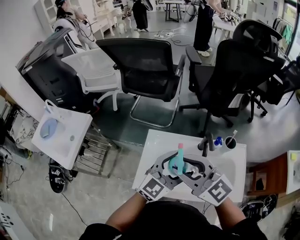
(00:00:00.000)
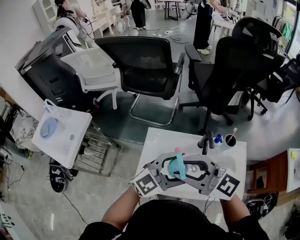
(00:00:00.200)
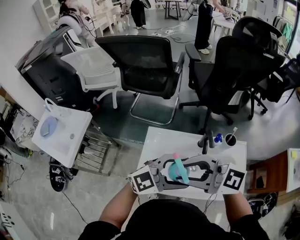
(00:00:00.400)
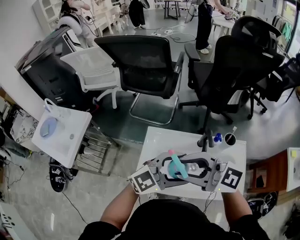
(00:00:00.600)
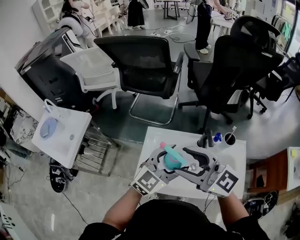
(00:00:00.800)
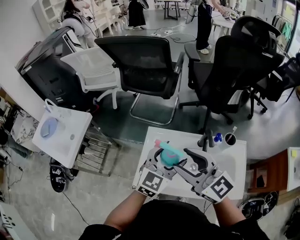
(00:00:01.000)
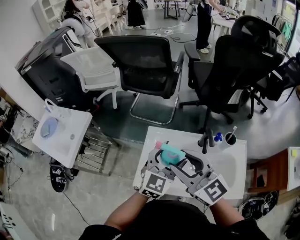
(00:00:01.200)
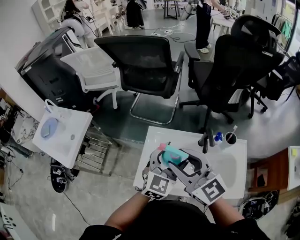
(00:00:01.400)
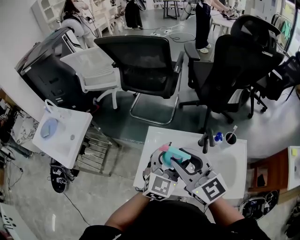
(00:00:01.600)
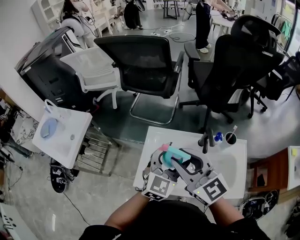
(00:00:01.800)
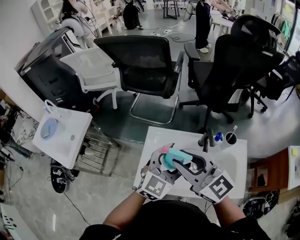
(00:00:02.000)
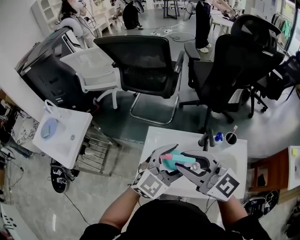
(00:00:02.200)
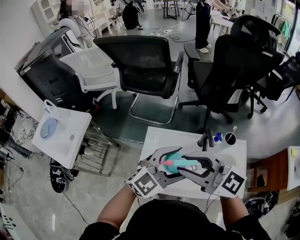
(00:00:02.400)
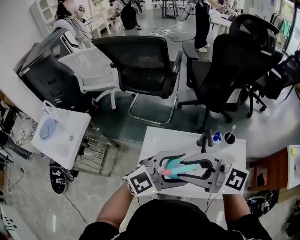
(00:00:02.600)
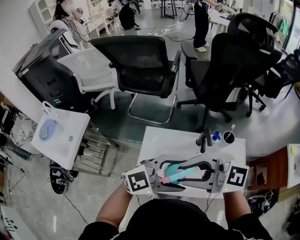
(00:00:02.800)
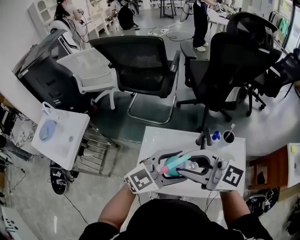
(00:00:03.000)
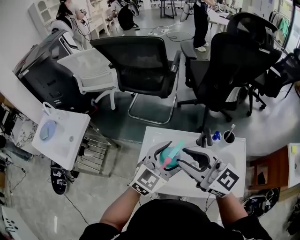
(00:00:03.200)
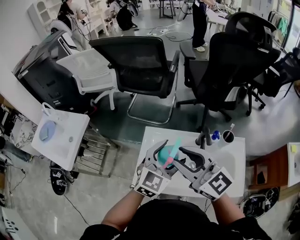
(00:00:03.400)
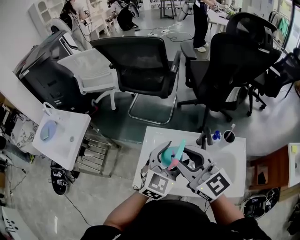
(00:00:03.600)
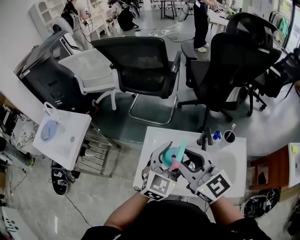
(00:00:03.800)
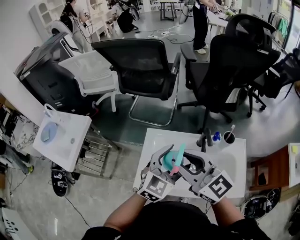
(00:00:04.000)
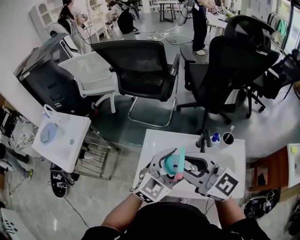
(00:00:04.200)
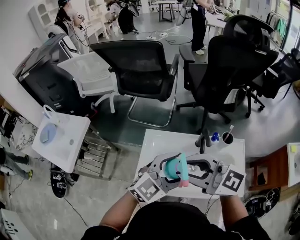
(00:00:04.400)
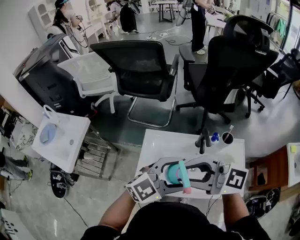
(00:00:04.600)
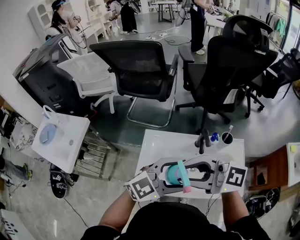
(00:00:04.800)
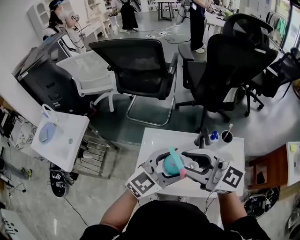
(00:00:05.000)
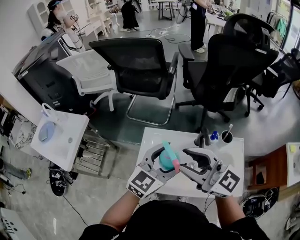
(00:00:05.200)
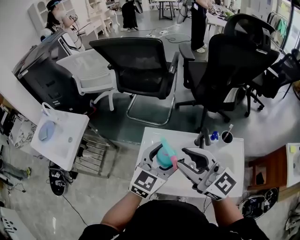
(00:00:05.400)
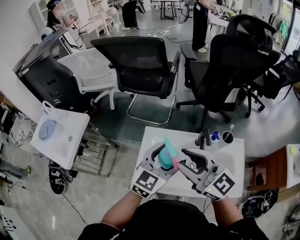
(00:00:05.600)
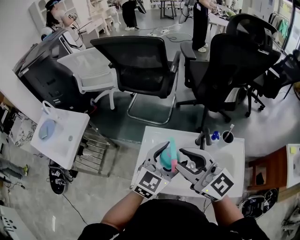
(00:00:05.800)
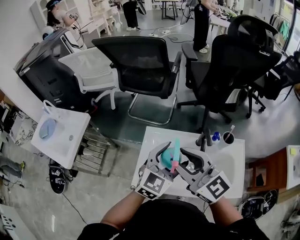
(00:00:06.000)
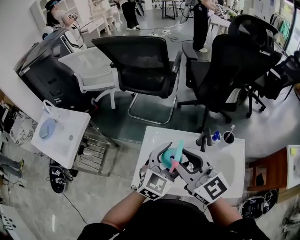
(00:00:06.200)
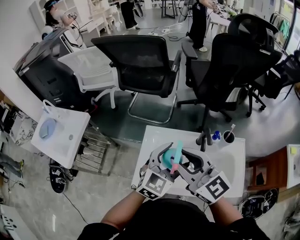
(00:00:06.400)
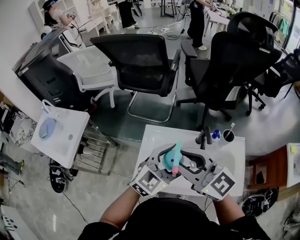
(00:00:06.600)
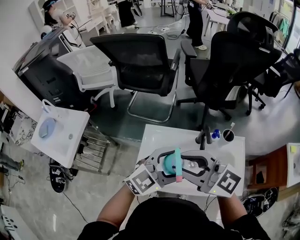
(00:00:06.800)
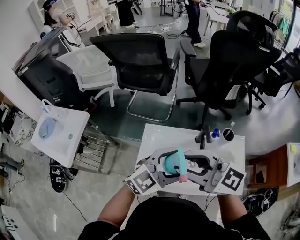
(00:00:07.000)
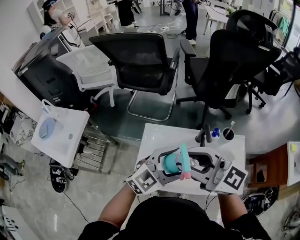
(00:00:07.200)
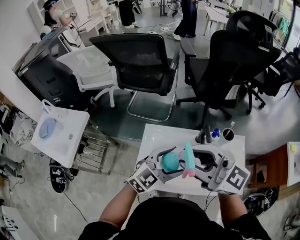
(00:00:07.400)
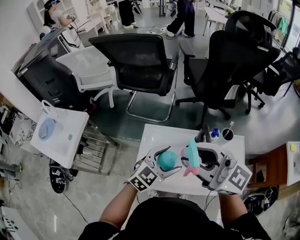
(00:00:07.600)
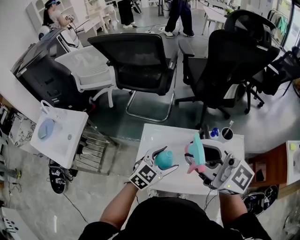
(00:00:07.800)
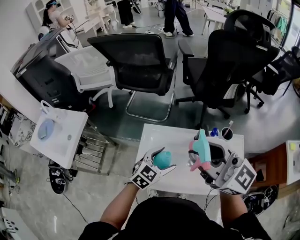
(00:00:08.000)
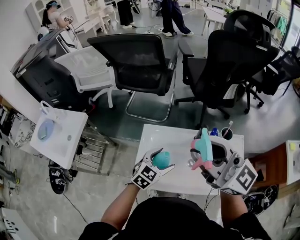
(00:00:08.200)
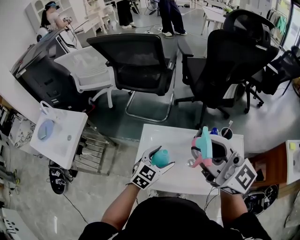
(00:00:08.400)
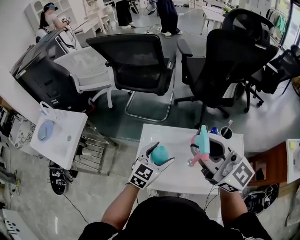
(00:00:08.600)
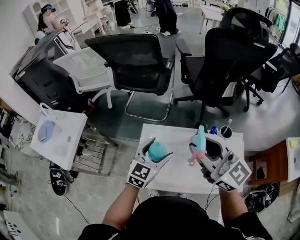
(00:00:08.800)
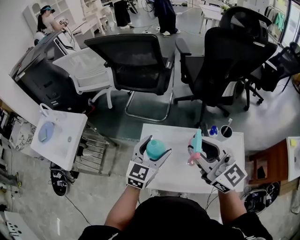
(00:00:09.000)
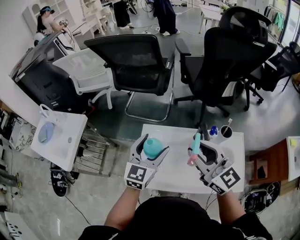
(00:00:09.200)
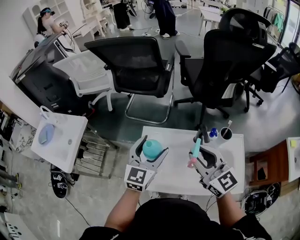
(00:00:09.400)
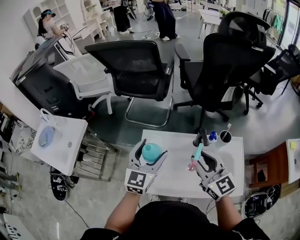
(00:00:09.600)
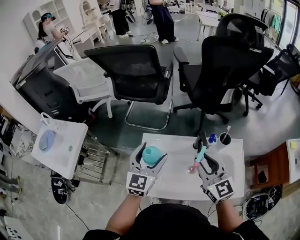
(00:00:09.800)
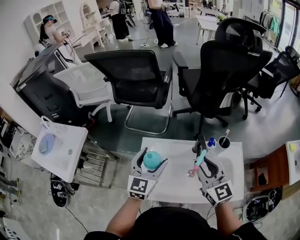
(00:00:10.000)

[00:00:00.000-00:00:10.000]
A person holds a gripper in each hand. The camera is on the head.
00:00:00.000 to 00:00:01.400: The left gripper changes its angle by roughly 20 degrees.
00:00:01.400 to 00:00:02.800: The right gripper moves roughly 5 cm, and changes its angle by some 40 degrees; the left gripper moves approximately 10 cm, and swivels about 50 degrees.
00:00:02.800 to 00:00:04.200: The right gripper swivels some 30 degrees, while the left gripper changes its angle by approximately 40 degrees.
00:00:05.800 to 00:00:07.200: The left gripper changes its angle by approximately 20 degrees.
00:00:07.200 to 00:00:08.600: The right gripper moves roughly 5 cm. The left gripper travels downward by roughly 10 cm, and turns by roughly 20 degrees.
00:00:08.600 to 00:00:10.000: The left gripper travels upward by approximately 5 cm; the right gripper goes about 15 cm downward, and changes its angle by about 30 degrees.

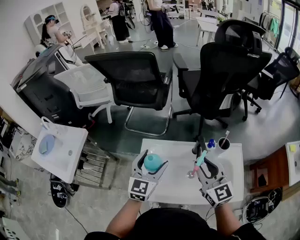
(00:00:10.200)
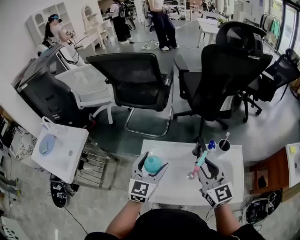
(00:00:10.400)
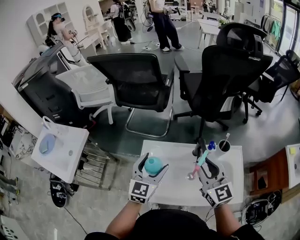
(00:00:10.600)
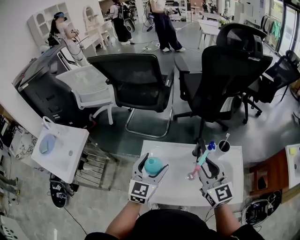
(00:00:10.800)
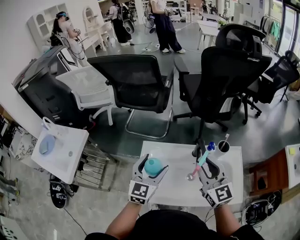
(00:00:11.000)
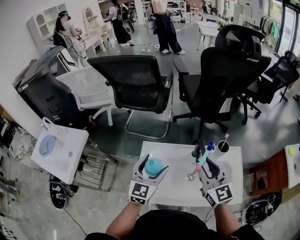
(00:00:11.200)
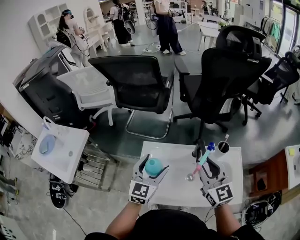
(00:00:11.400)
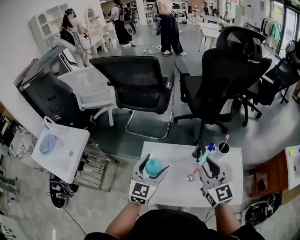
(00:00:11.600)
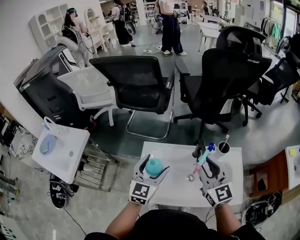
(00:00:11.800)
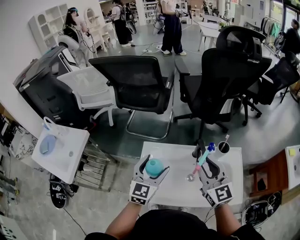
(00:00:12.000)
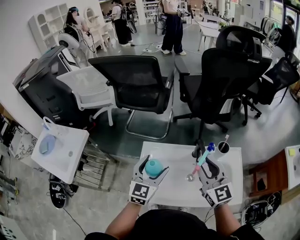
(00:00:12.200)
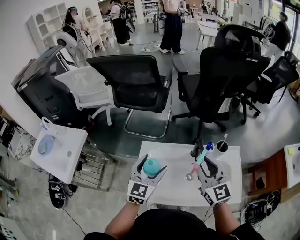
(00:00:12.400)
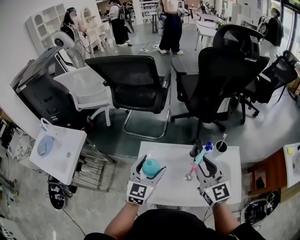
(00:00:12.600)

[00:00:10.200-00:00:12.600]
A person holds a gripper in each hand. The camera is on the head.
00:00:10.200 to 00:00:11.400: The grippers make only small movements.
00:00:11.400 to 00:00:12.600: Neither gripper changes place.

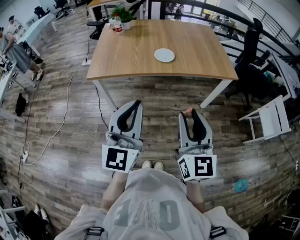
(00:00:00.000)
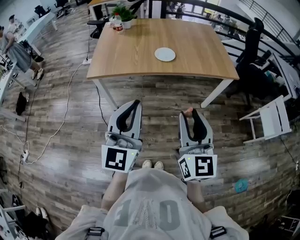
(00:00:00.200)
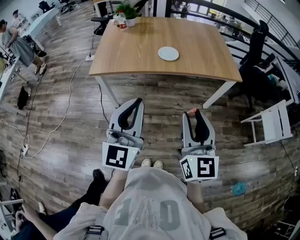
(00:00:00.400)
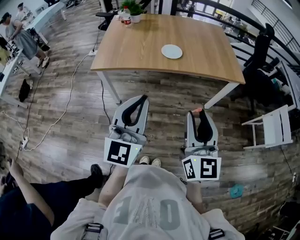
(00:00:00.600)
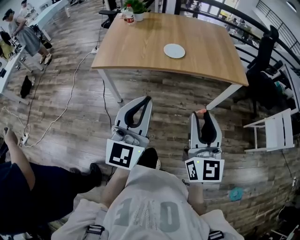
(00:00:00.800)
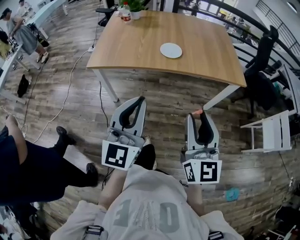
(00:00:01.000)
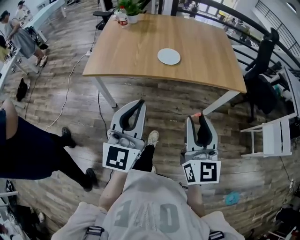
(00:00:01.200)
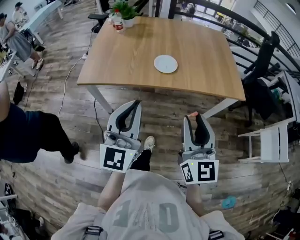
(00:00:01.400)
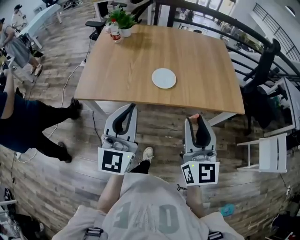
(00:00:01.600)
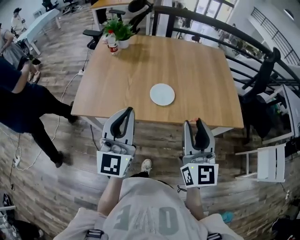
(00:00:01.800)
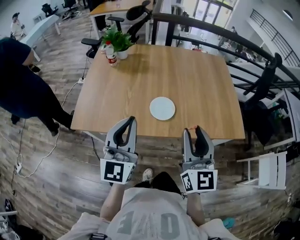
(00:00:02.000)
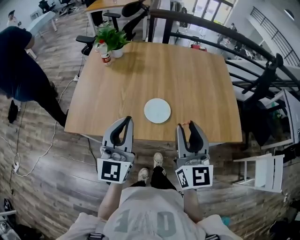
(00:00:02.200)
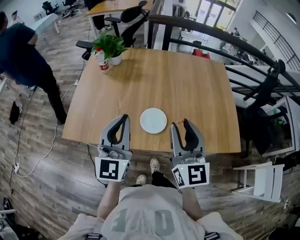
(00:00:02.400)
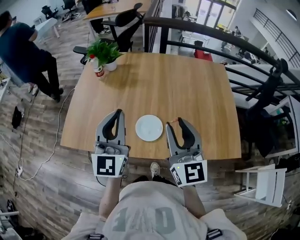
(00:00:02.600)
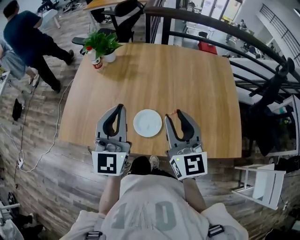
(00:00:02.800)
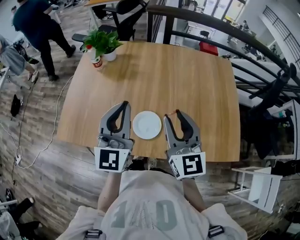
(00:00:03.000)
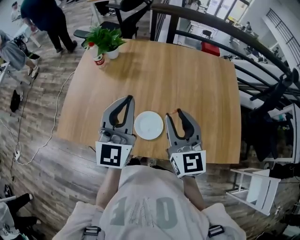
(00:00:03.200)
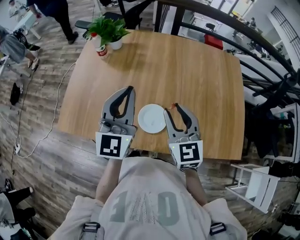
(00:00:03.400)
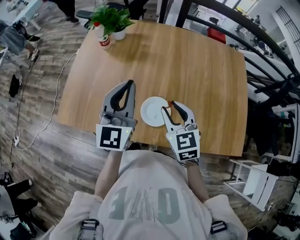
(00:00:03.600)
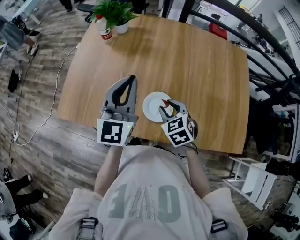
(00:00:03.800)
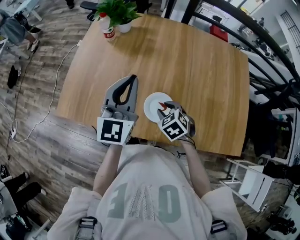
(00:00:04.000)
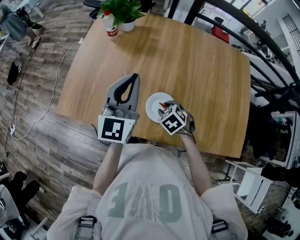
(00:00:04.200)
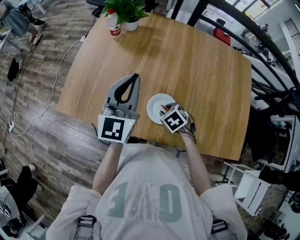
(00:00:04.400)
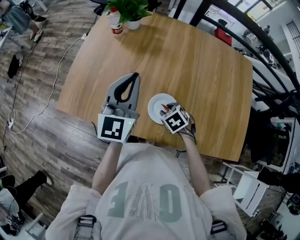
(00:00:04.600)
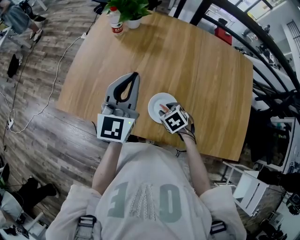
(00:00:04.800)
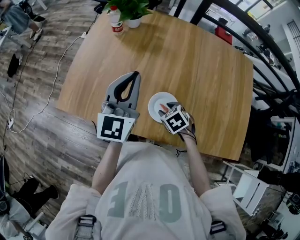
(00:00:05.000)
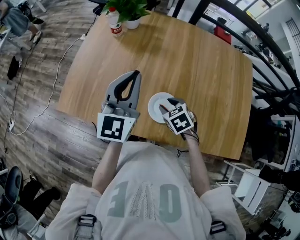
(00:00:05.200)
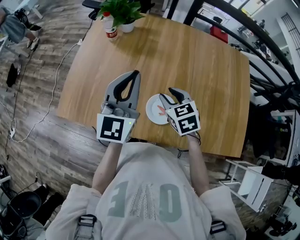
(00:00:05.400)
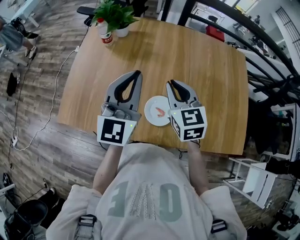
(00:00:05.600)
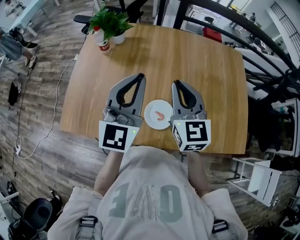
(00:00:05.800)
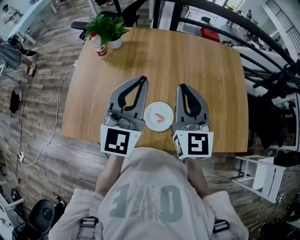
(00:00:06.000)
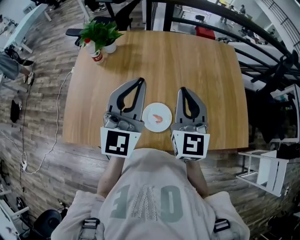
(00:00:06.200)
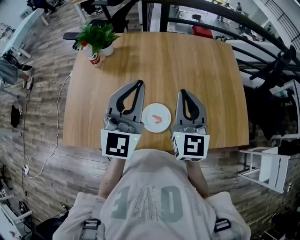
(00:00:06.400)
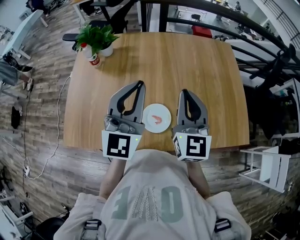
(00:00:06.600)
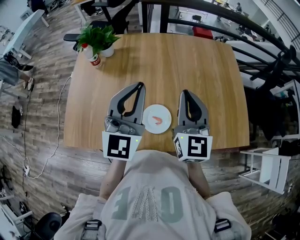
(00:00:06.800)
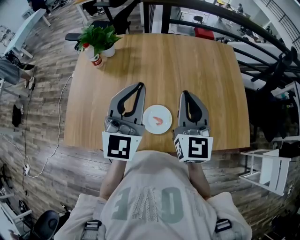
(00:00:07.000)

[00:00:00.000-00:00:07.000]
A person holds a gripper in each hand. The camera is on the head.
00:00:00.000 to 00:00:01.400: Both grippers travel together forward, about 15 cm.
00:00:01.400 to 00:00:02.800: Both grippers travel together forward, approximately 35 cm.
00:00:02.800 to 00:00:04.200: The right gripper heads downward, covering approximately 30 cm, and tips its fingers downward by about 70 degrees. Meanwhile the left gripper moves forward and downward, roughly 10 cm.
00:00:04.200 to 00:00:05.600: The right gripper moves upward, roughly 20 cm, angles its fingers upward, by about 40 degrees, and closes up.
00:00:05.600 to 00:00:07.000: The left gripper heads to the right, covering some 5 cm. Meanwhile the right gripper shifts roughly 10 cm to the right and upward, and turns by approximately 30 degrees.

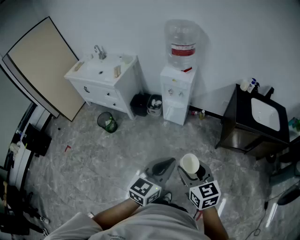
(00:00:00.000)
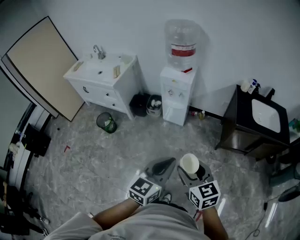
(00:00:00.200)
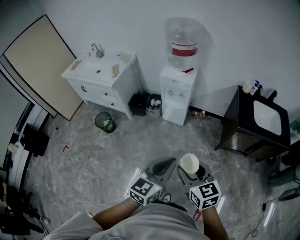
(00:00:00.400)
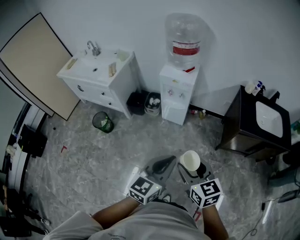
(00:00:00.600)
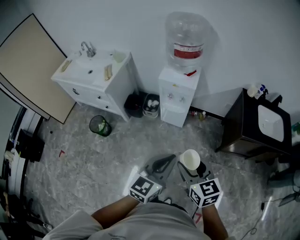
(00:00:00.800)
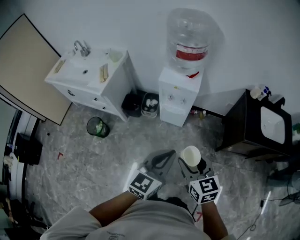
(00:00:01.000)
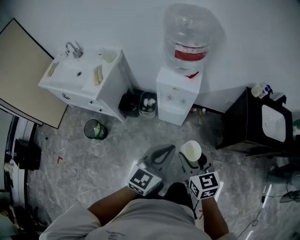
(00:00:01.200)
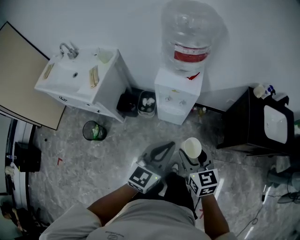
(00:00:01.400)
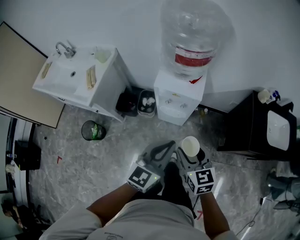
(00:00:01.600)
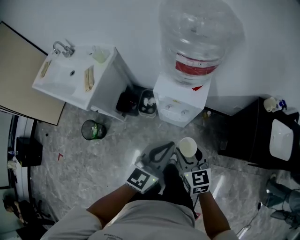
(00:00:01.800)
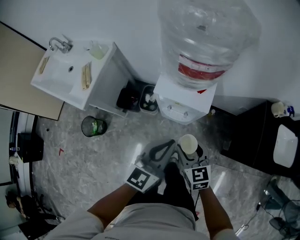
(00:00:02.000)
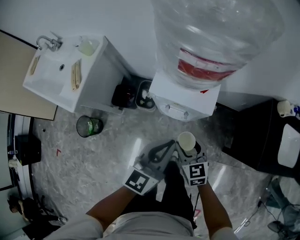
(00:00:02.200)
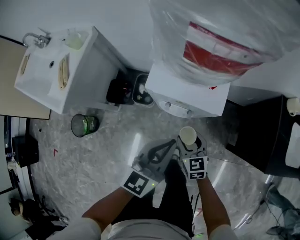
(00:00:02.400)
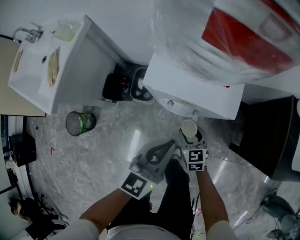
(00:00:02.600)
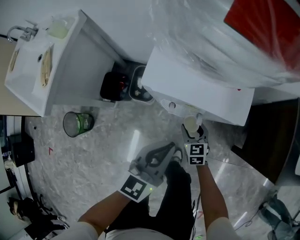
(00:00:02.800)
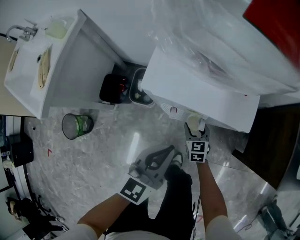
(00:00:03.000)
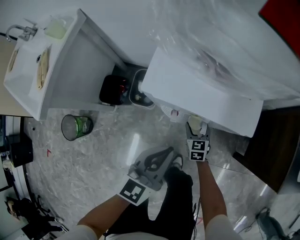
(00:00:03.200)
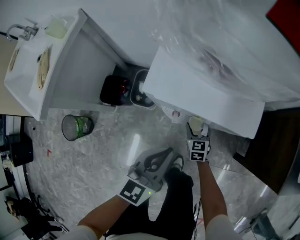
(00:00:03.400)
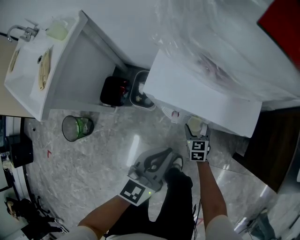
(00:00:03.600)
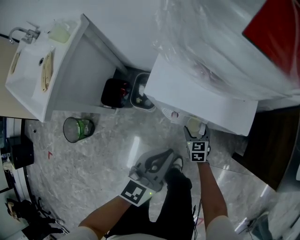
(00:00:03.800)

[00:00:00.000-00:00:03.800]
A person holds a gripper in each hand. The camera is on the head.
00:00:00.000 to 00:00:01.200: Both grippers move forward, roughly 30 cm.
00:00:01.200 to 00:00:02.600: The right gripper heads downward and forward, covering some 50 cm. The left gripper moves forward and downward, approximately 40 cm.
00:00:02.600 to 00:00:03.800: The left gripper shifts some 5 cm downward; the right gripper is displaced downward and forward by some 15 cm.
